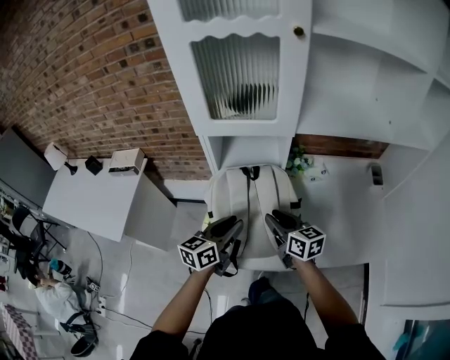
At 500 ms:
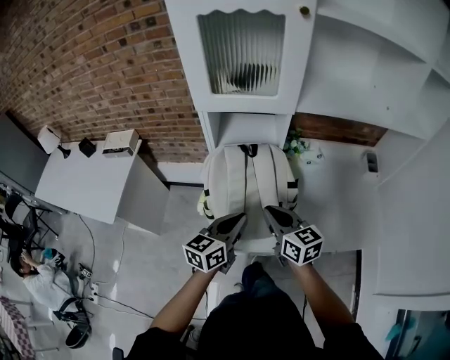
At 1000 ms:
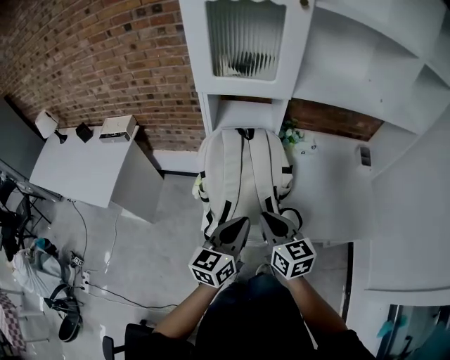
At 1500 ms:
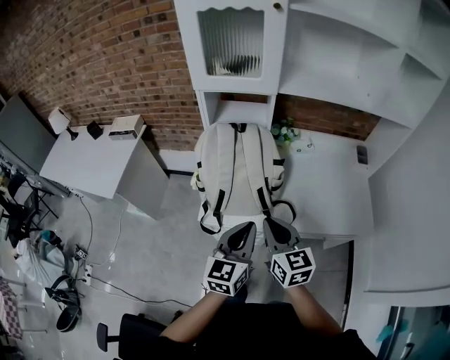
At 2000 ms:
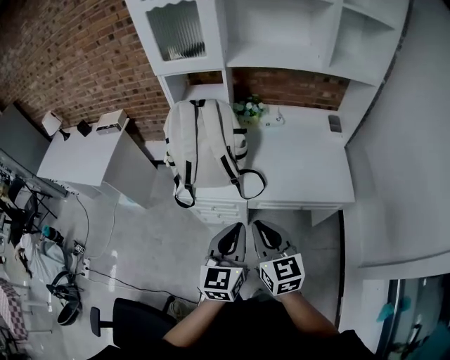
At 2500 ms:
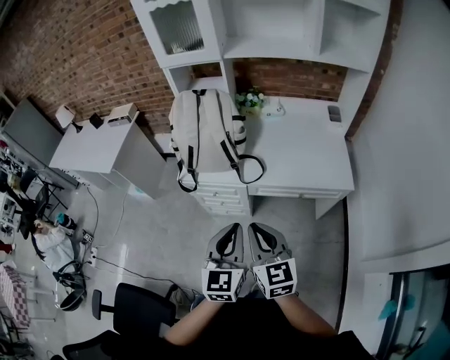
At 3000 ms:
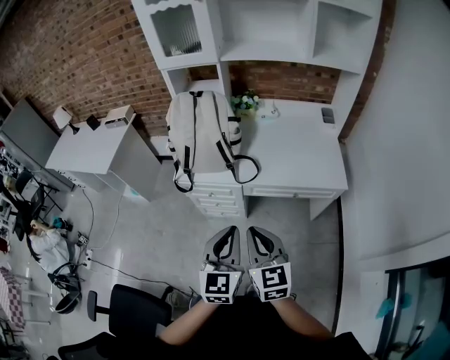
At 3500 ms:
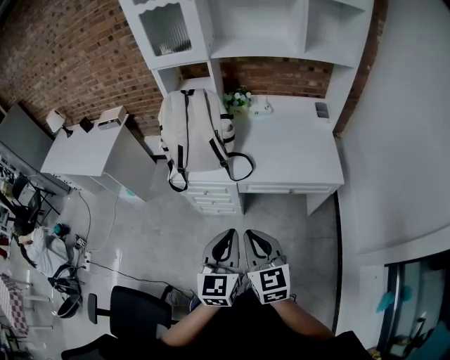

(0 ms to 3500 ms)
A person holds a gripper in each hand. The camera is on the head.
0 ms - 2000 ms: The pair of grippers is taken backward and to the right, roughly 40 cm. The left gripper turns by some 30 degrees, and closes, while the right gripper turns by approximately 20 degrees, and closes up.
2000 ms - 3500 ms: The two grippers go some 15 cm backward.

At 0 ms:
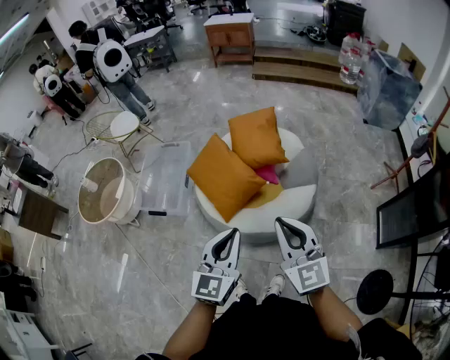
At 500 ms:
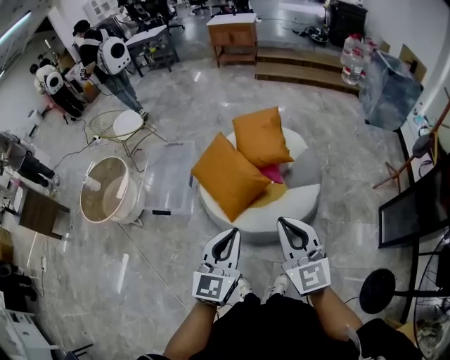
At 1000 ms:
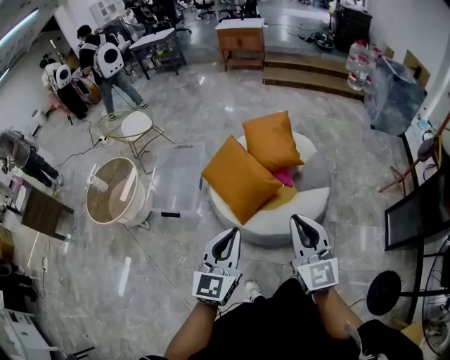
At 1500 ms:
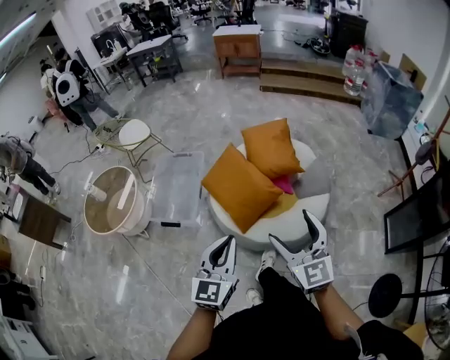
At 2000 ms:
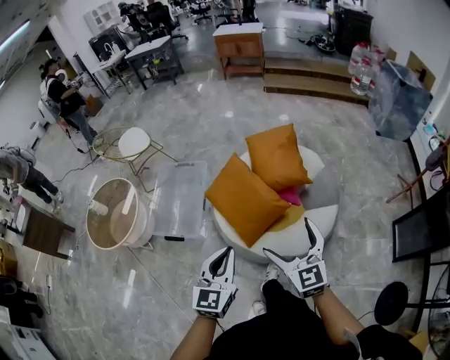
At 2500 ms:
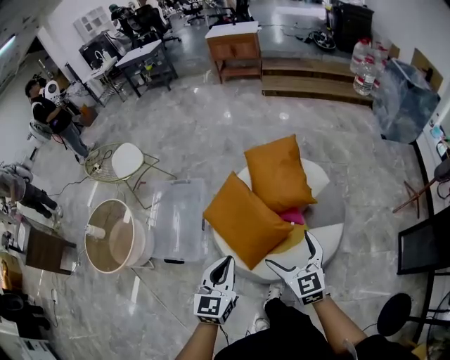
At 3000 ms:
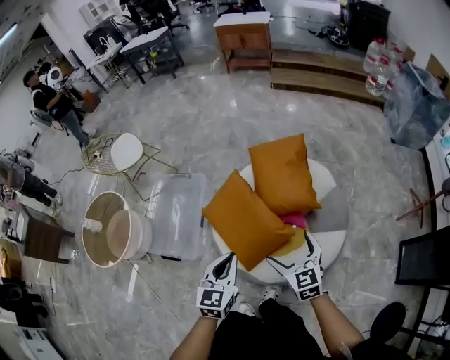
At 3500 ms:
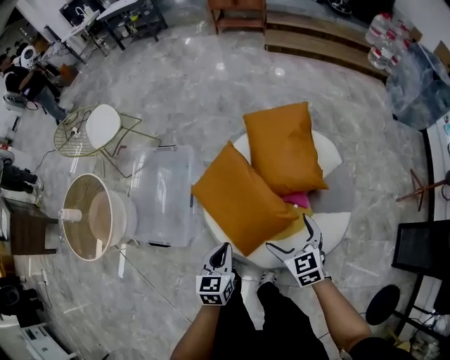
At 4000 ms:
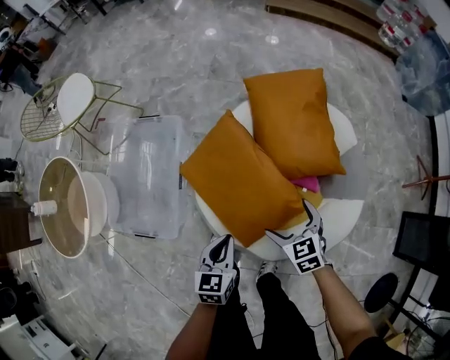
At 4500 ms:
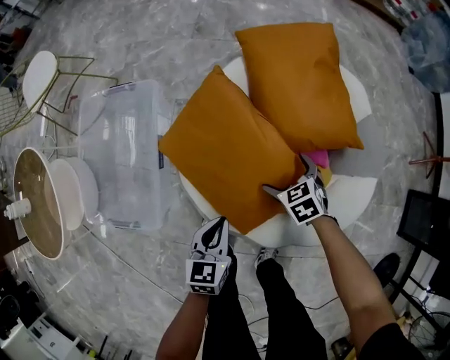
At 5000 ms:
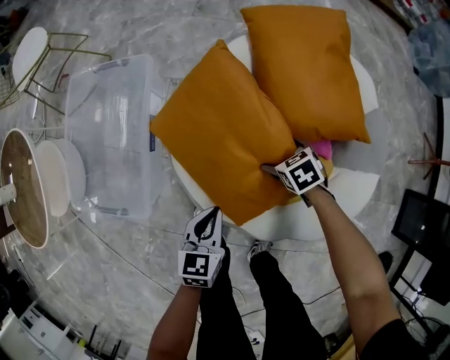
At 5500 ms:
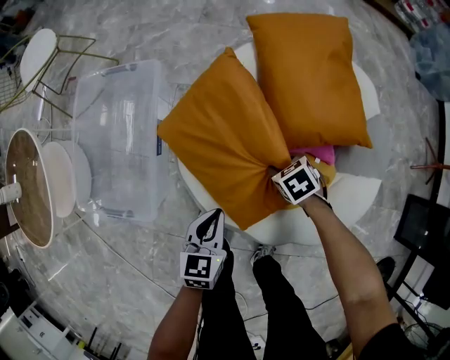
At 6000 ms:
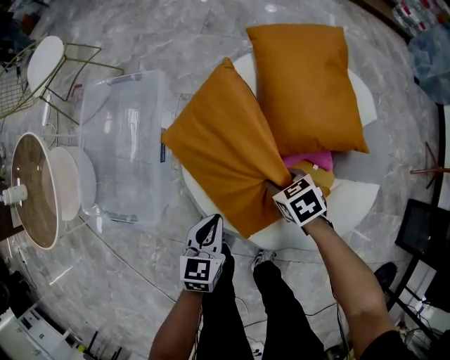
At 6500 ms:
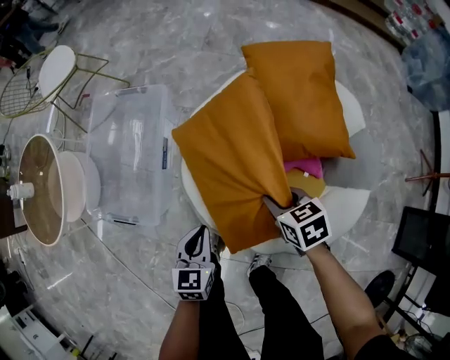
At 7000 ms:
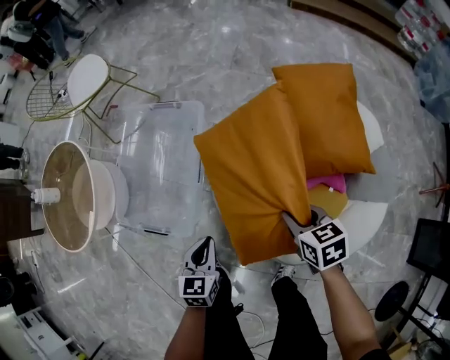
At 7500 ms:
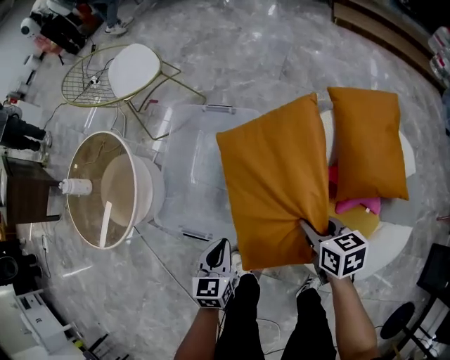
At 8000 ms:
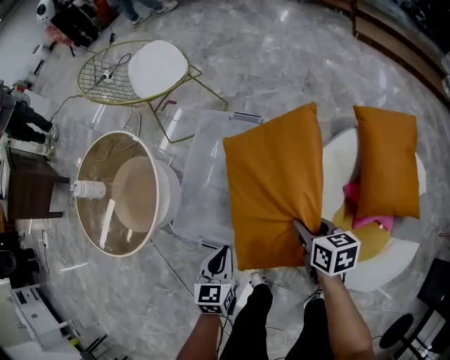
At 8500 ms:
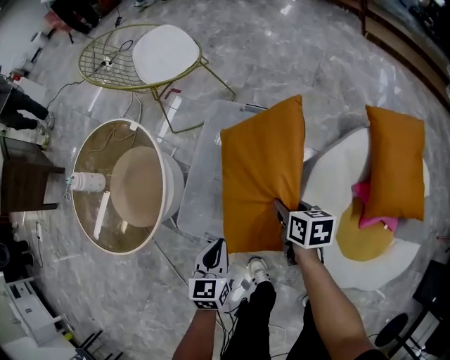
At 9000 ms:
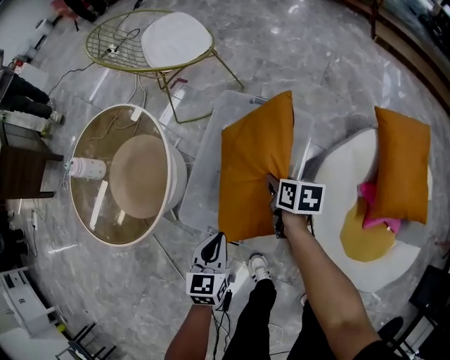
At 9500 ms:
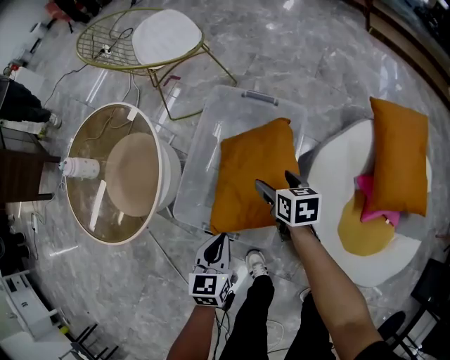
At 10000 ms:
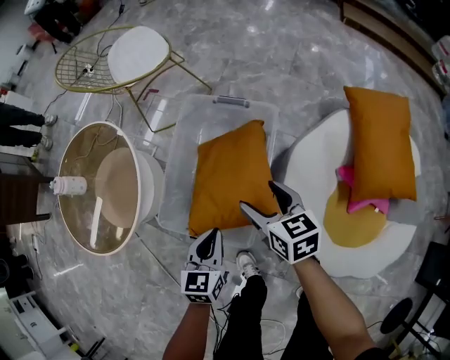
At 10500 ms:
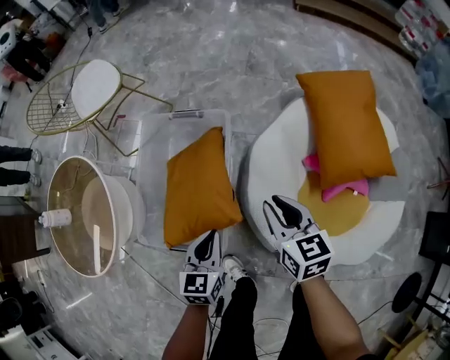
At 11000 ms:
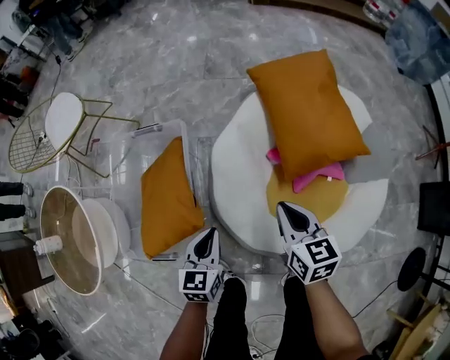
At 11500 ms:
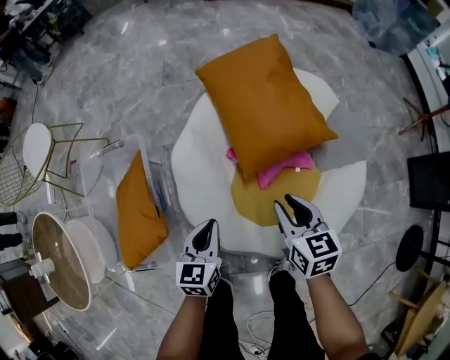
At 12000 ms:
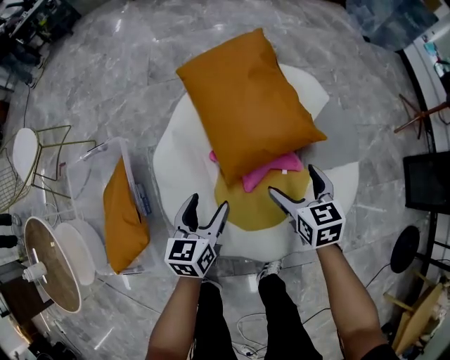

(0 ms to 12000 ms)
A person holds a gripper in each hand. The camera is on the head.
0 ms - 2000 ms: The left gripper travels to the left and forward by approximately 25 cm; the right gripper moves forward, to the left and downward, about 25 cm, and opens its fingers.
2000 ms - 4000 ms: The pair of grippers is taken forward, some 40 cm. Both grippers move downward, some 50 cm. The right gripper angles its fingers downward, by roughly 40 degrees. Meanwhile the left gripper changes its angle by some 30 degrees.
4000 ms - 6000 ms: The grippers both shift downward by approximately 20 cm. The right gripper changes its angle by about 20 degrees, and closes up.
6000 ms - 8000 ms: The pair of grippers is taken to the left and forward, approximately 40 cm. The left gripper changes its angle by about 20 degrees, while the right gripper shifts some 20 cm upward, and turns by some 30 degrees.
8000 ms - 10000 ms: The right gripper is displaced to the left and forward by approximately 10 cm, and opens its fingers. The left gripper moves approximately 10 cm to the left and comes back.
10000 ms - 12000 ms: Both grippers are carried some 70 cm. The left gripper changes its angle by some 30 degrees, and opens, while the right gripper changes its angle by roughly 40 degrees, and closes, then opens again.

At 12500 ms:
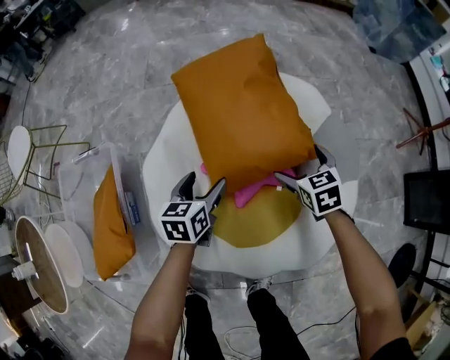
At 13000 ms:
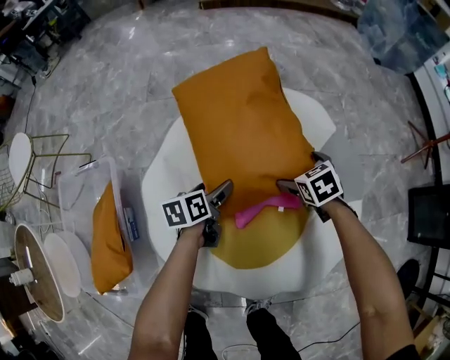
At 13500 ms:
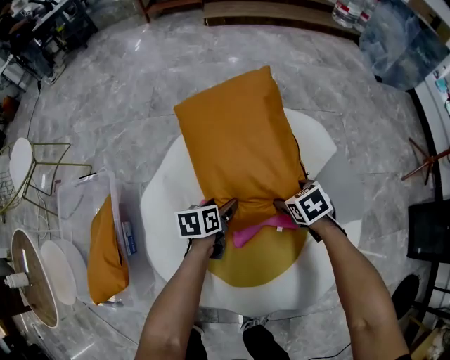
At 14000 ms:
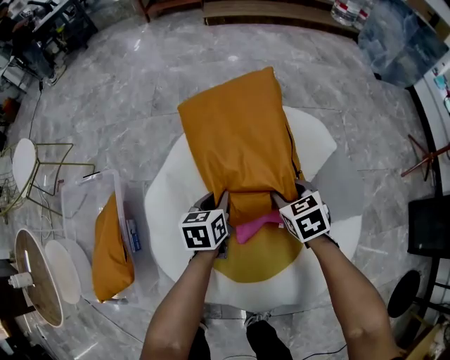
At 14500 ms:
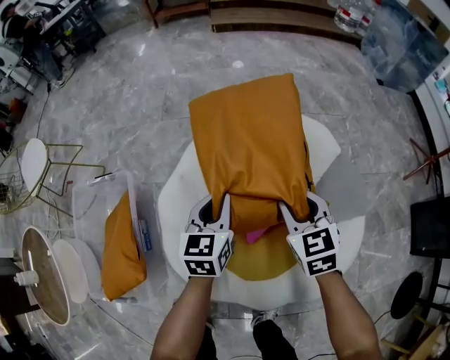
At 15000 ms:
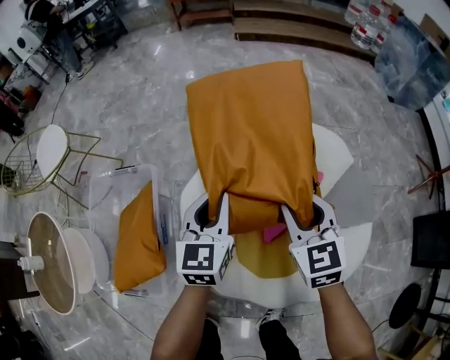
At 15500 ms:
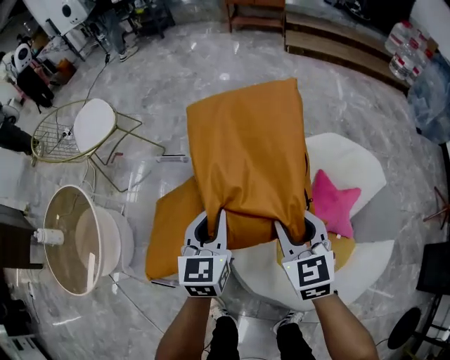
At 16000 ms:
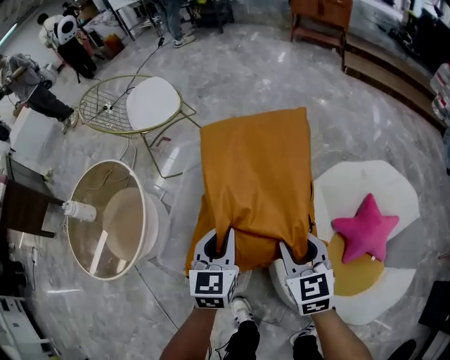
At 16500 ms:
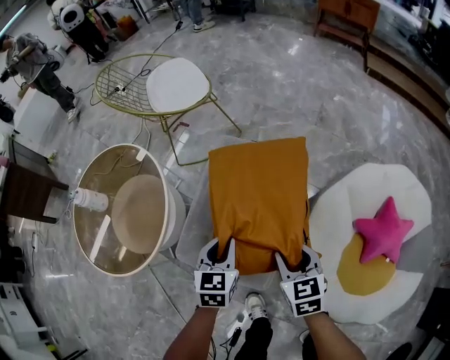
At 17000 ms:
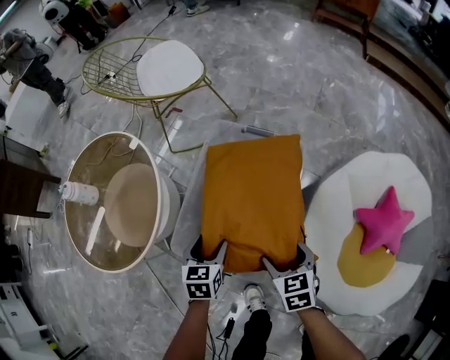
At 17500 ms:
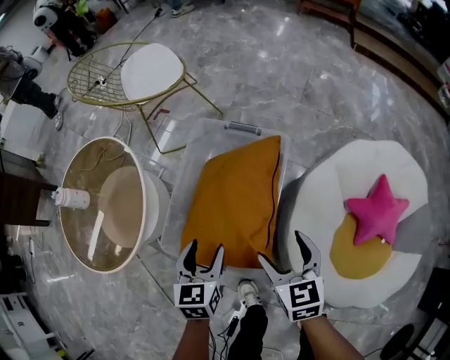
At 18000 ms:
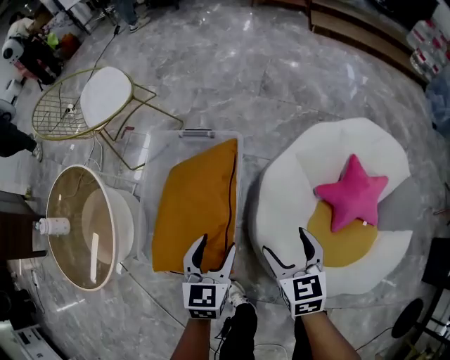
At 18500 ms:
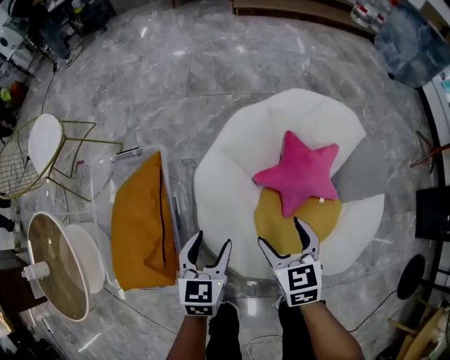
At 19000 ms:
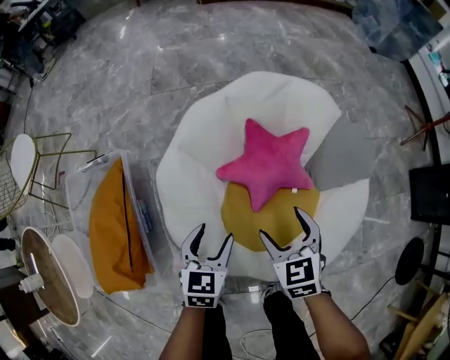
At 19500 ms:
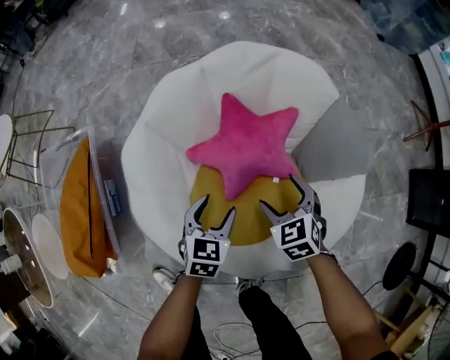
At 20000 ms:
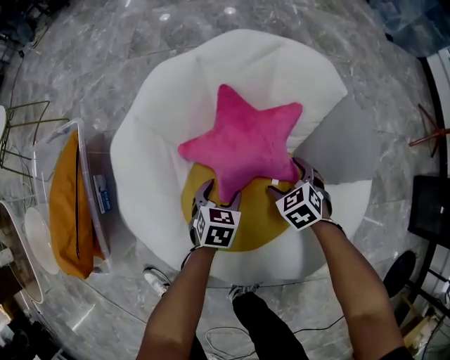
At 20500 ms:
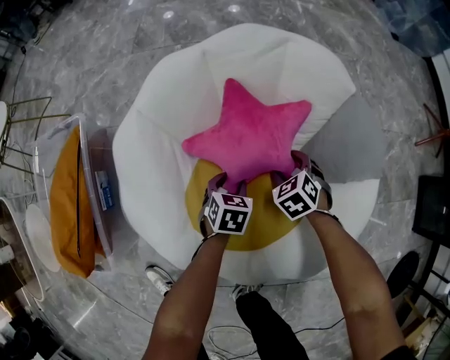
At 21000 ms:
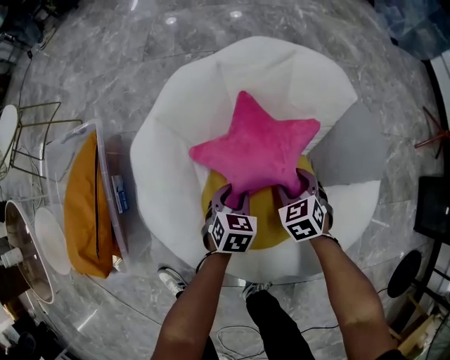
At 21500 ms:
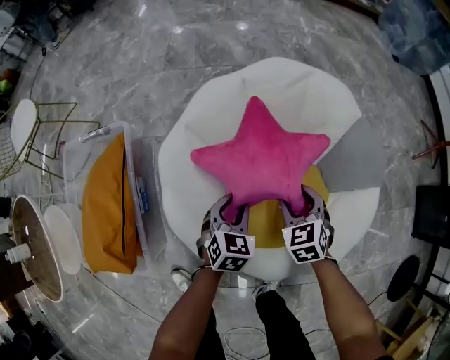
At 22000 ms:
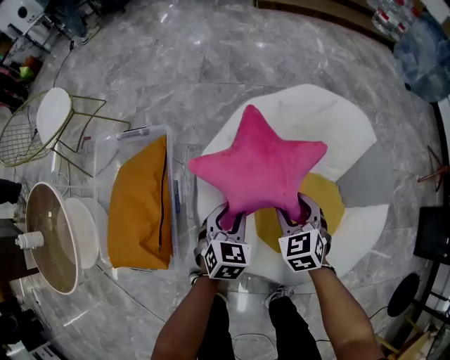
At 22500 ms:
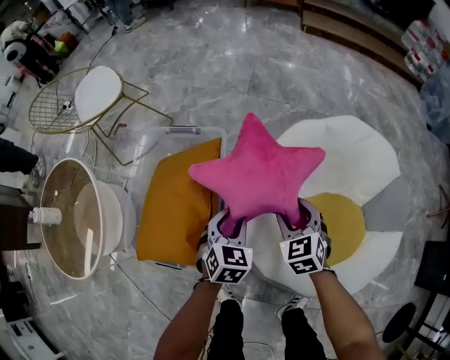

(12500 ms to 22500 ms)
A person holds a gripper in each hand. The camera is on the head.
12500 ms - 14500 ms: The right gripper shifts approximately 15 cm upward and to the left, and closes up; the left gripper heads upward, covering some 10 cm, and closes up.
14500 ms - 16500 ms: The two grippers travel together, approximately 70 cm. The left gripper rotates approximately 30 degrees; the right gripper turns by approximately 30 degrees.
16500 ms - 18500 ms: The two grippers travel together, about 40 cm. The left gripper swivels about 30 degrees, and opens its fingers. The right gripper swivels about 30 degrees, and opens up.
18500 ms - 20500 ms: Both grippers travel together to the right and downward, some 50 cm. The right gripper swivels roughly 30 degrees. Meanwhile the left gripper turns by about 20 degrees.
20500 ms - 22500 ms: The pair of grippers is taken to the left, roughly 50 cm. Both grippers travel together upward, roughly 30 cm. The right gripper turns by about 20 degrees. Meanwhile the left gripper turns by roughly 20 degrees.
